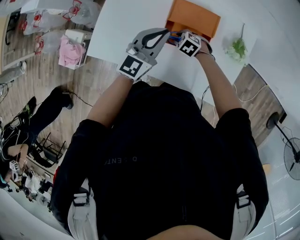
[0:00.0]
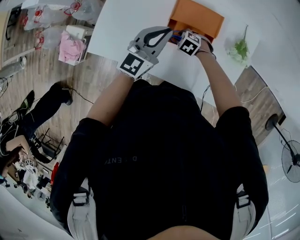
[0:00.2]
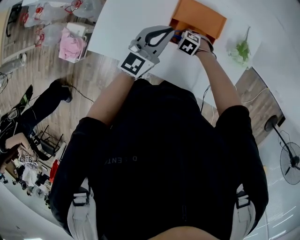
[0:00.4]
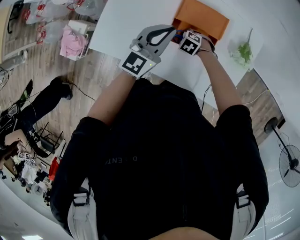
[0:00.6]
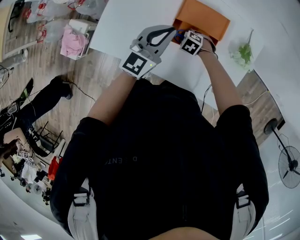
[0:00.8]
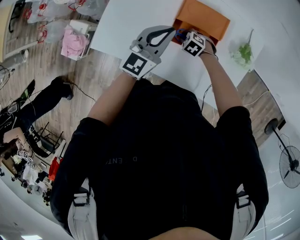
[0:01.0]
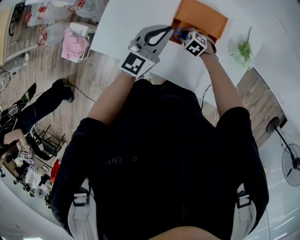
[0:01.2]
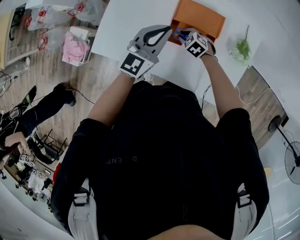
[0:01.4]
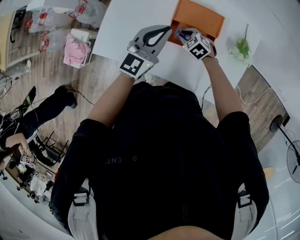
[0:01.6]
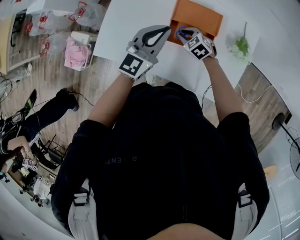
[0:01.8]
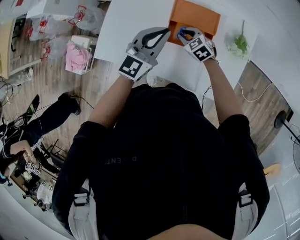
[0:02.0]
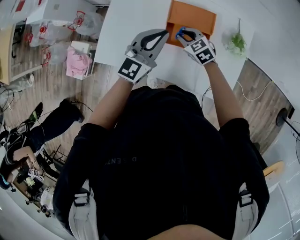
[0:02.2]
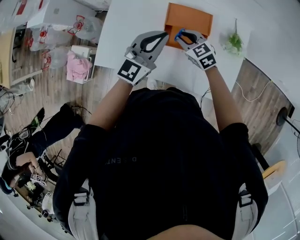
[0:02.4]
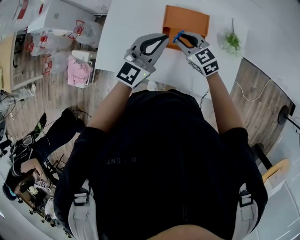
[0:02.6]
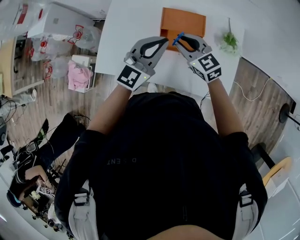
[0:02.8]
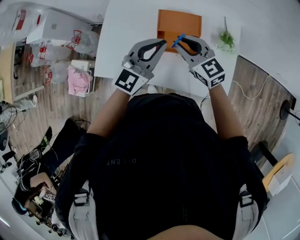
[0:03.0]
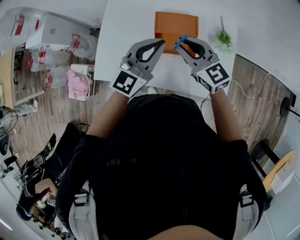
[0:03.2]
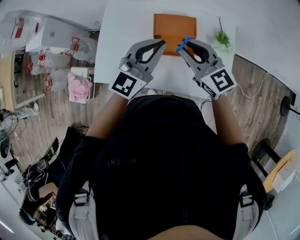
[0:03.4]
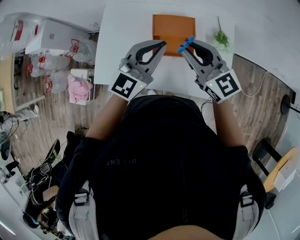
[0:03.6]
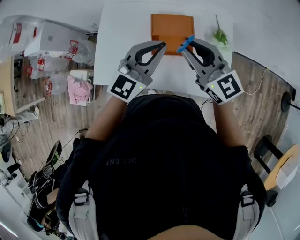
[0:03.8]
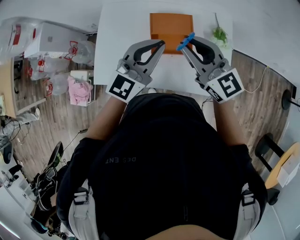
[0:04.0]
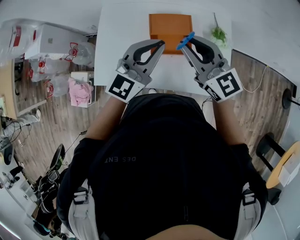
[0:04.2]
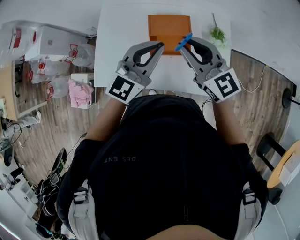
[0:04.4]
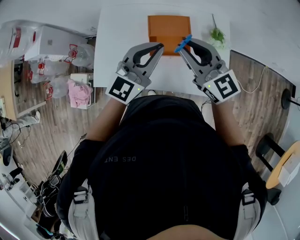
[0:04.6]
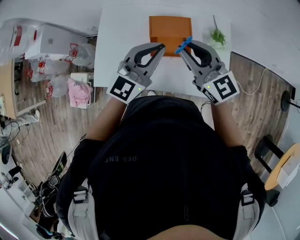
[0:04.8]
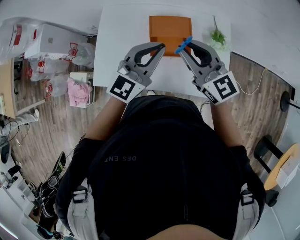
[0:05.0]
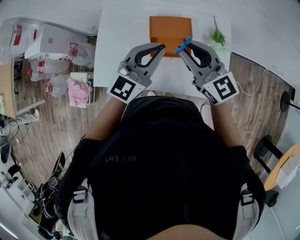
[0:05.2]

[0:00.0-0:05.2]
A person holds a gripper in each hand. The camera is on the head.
0:00.0 to 0:01.8: The grippers make only small movements.
0:01.8 to 0:03.4: The right gripper is displaced upward by about 30 cm, and tilts its fingers some 50 degrees upward, while the left gripper goes some 10 cm upward.
0:03.4 to 0:05.2: The right gripper changes place by approximately 5 cm.

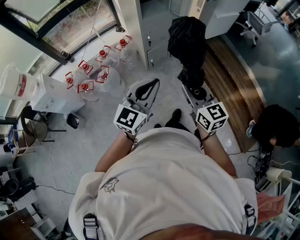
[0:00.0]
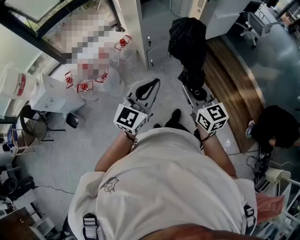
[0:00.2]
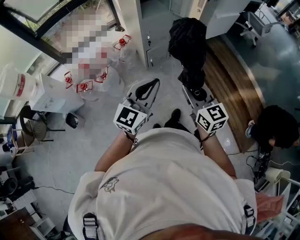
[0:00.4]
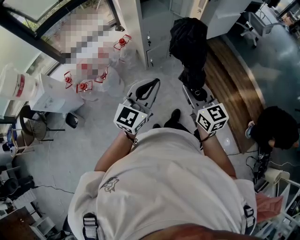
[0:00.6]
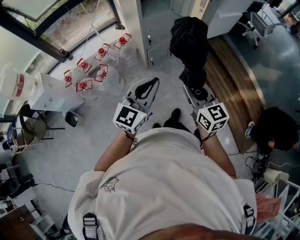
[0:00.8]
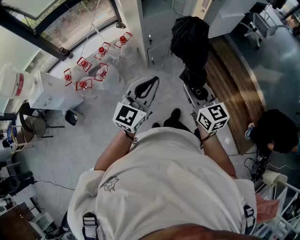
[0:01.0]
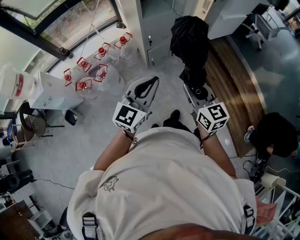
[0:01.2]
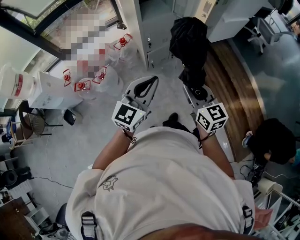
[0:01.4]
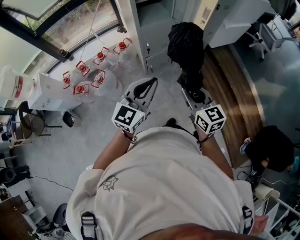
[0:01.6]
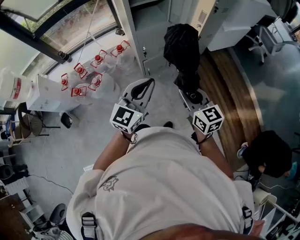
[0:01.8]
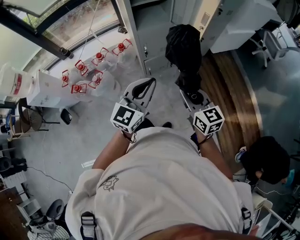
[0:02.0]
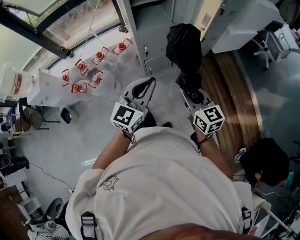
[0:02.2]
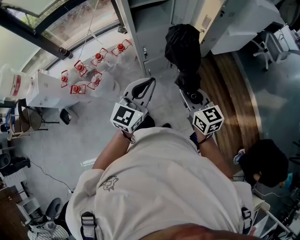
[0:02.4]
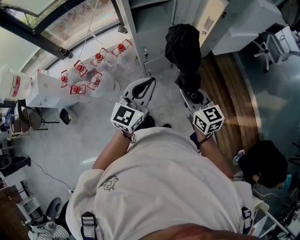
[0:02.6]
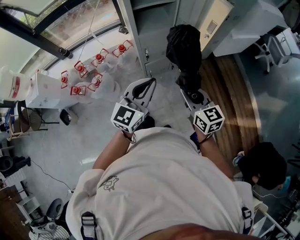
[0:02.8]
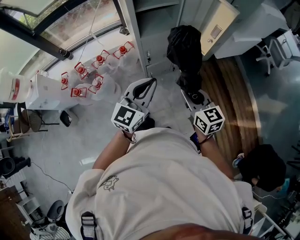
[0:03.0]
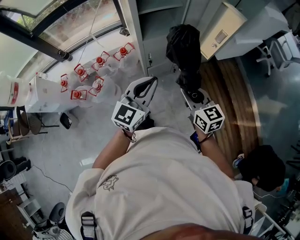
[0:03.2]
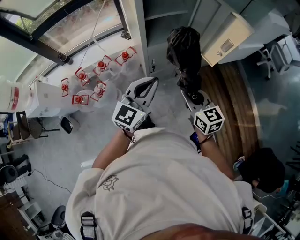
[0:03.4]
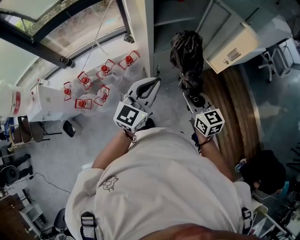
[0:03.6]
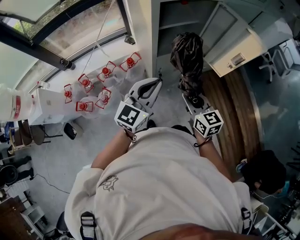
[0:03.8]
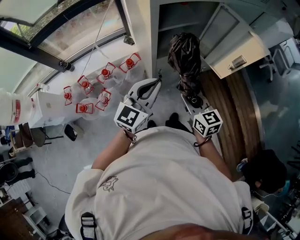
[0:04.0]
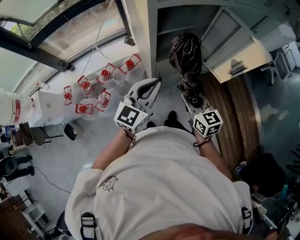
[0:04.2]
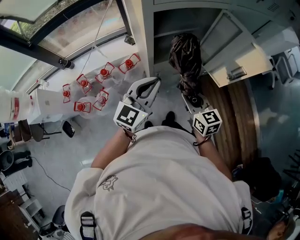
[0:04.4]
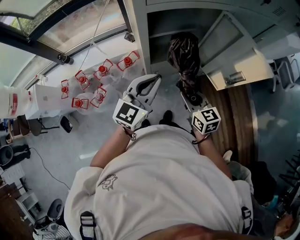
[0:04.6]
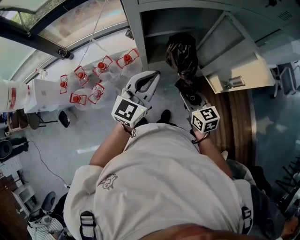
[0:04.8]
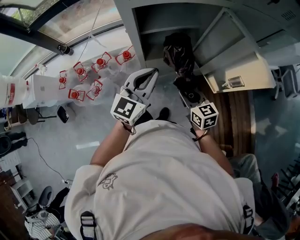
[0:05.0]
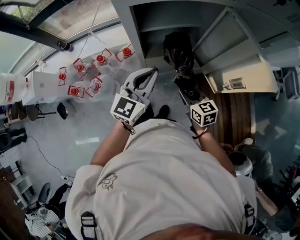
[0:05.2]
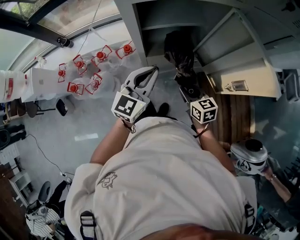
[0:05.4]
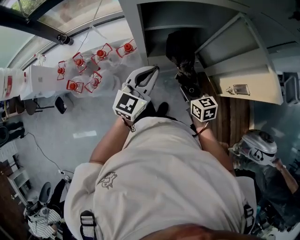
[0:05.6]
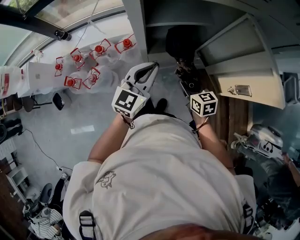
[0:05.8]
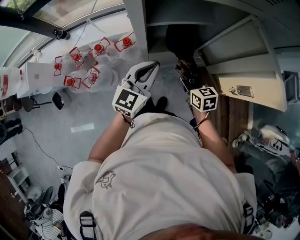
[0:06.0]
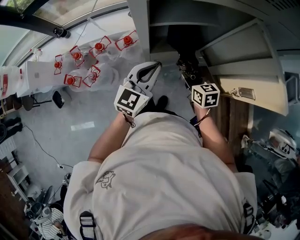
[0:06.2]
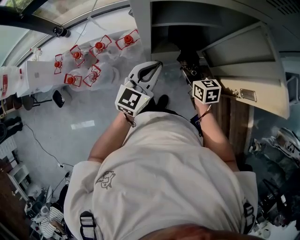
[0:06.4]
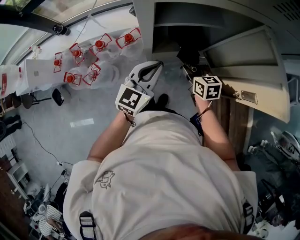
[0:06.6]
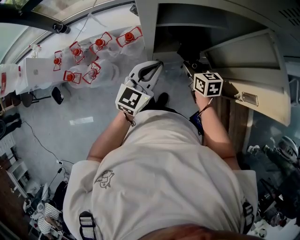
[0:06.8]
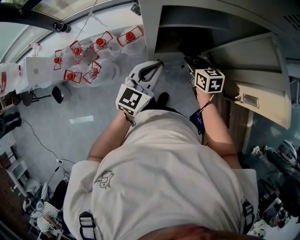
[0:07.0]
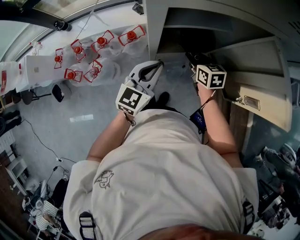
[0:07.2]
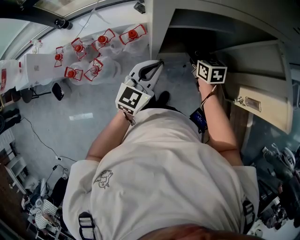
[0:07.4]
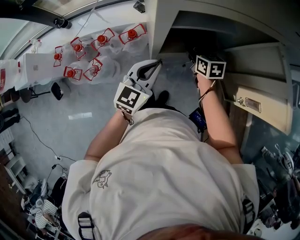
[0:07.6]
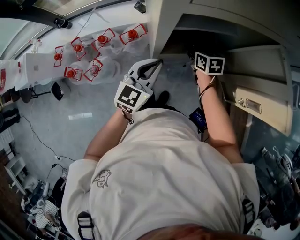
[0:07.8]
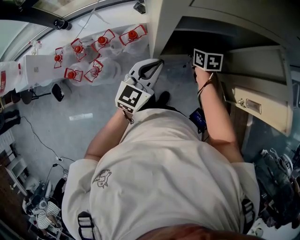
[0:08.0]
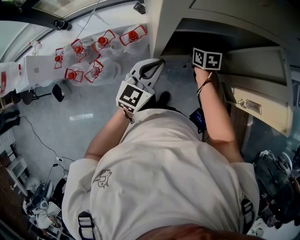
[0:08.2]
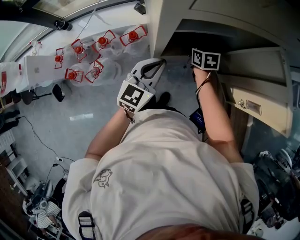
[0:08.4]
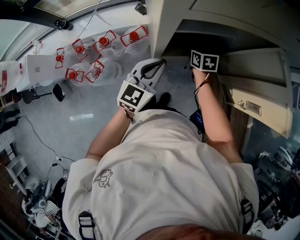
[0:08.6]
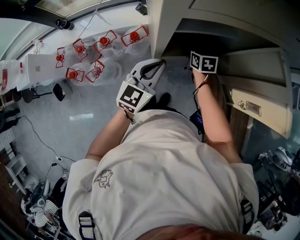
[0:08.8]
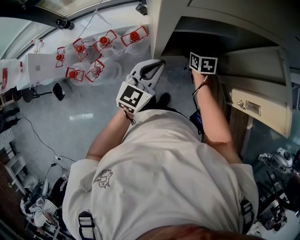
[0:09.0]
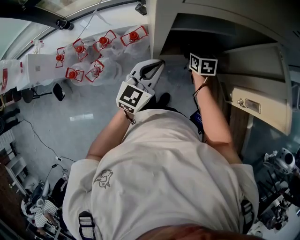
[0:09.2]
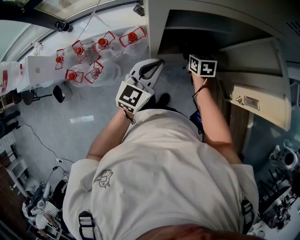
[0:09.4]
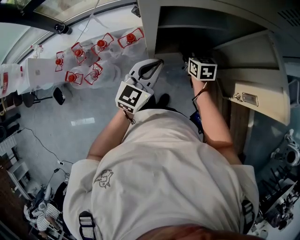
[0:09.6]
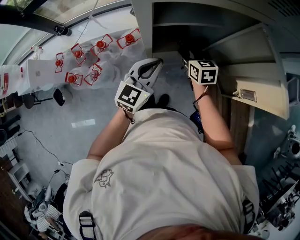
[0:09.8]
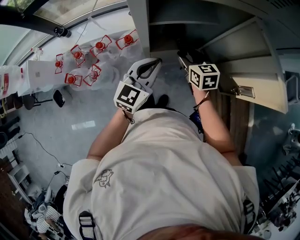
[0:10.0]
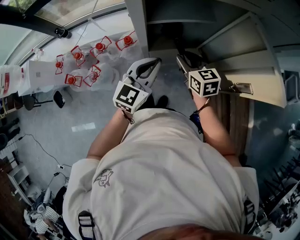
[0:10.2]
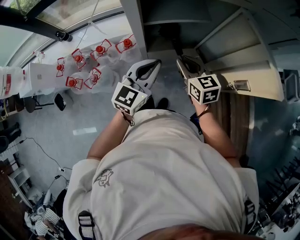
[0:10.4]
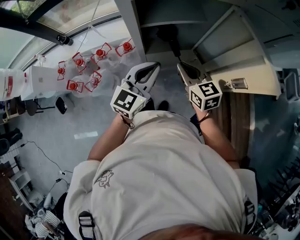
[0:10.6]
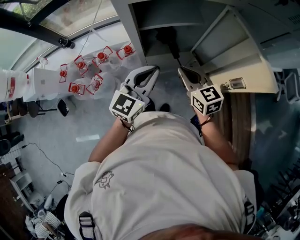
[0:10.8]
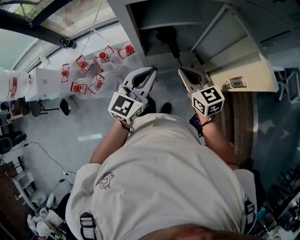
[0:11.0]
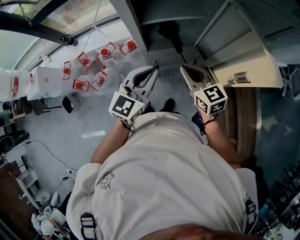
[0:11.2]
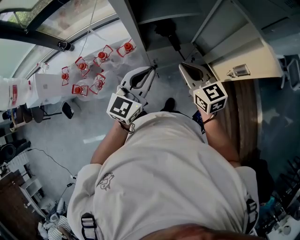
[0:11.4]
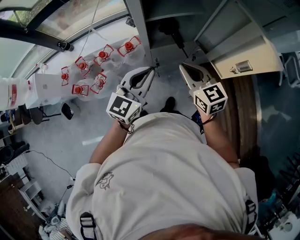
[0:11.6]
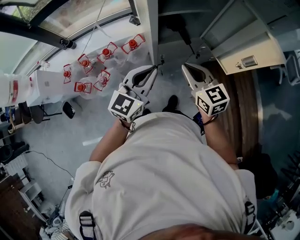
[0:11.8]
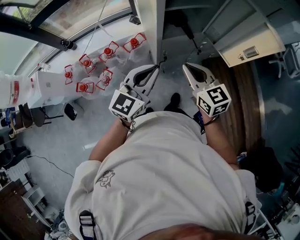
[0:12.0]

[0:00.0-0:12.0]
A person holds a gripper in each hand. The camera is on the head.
0:00.0 to 0:01.6: The right gripper is displaced forward and to the right by roughly 20 cm. Meanwhile the left gripper goes some 15 cm forward.
0:01.6 to 0:03.0: The two grippers go roughly 15 cm forward.
0:03.0 to 0:04.4: The right gripper moves forward and to the left, approximately 25 cm. Meanwhile the left gripper travels forward by about 20 cm.
0:04.4 to 0:06.0: The right gripper goes some 20 cm downward, forward and to the right, and swivels about 20 degrees. The left gripper heads forward and downward, covering approximately 15 cm.
0:06.0 to 0:07.6: The right gripper moves forward, some 15 cm, while the left gripper moves about 5 cm.
0:07.6 to 0:09.0: The right gripper opens its fingers.
0:09.0 to 0:10.4: The left gripper heads to the right and backward, covering about 10 cm. The right gripper goes some 20 cm backward and upward, and closes up.
0:10.4 to 0:12.0: The left gripper heads backward and to the left, covering roughly 20 cm, while the right gripper travels backward, to the left and upward by roughly 20 cm.

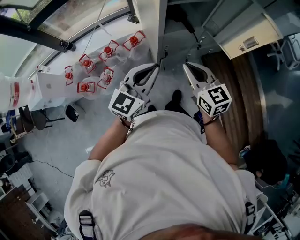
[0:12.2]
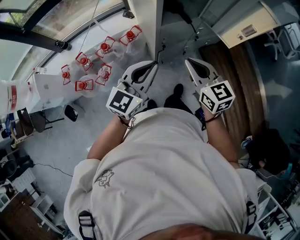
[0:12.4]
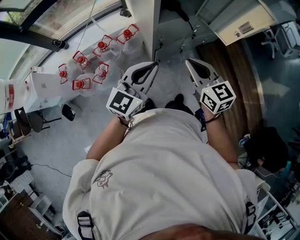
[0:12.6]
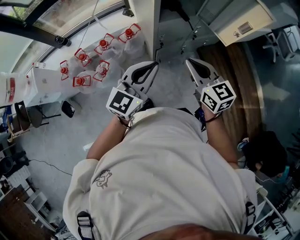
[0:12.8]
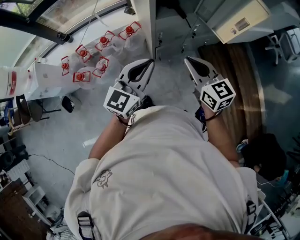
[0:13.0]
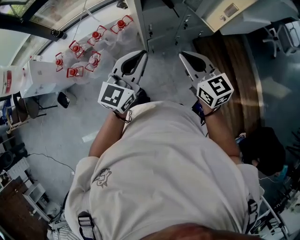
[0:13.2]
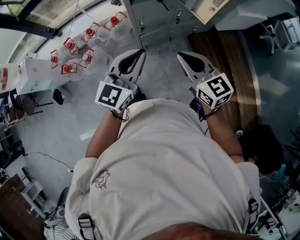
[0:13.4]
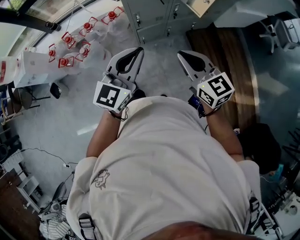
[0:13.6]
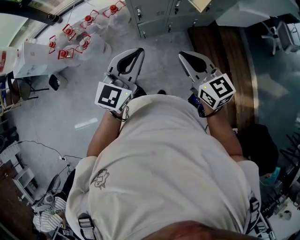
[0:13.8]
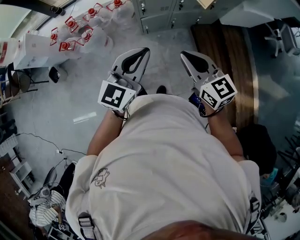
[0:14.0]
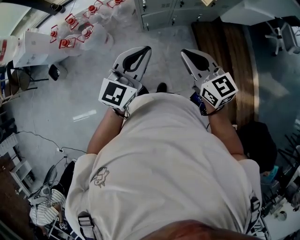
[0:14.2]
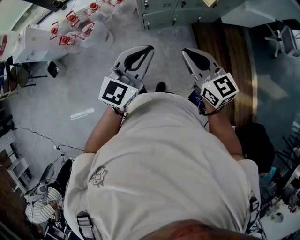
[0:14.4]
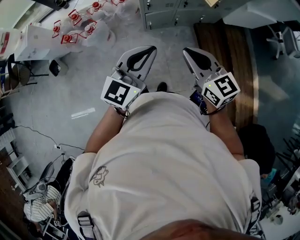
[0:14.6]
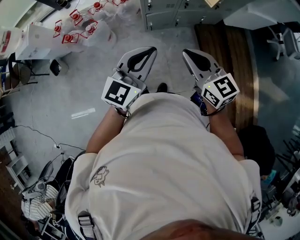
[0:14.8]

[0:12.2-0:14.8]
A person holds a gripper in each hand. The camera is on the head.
0:12.2 to 0:13.4: The grippers both shift to the right and backward by approximately 20 cm.
0:13.4 to 0:14.8: The grippers both shift backward by some 15 cm.

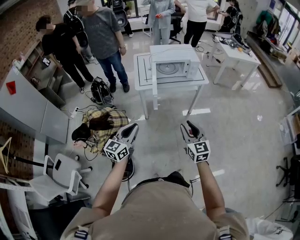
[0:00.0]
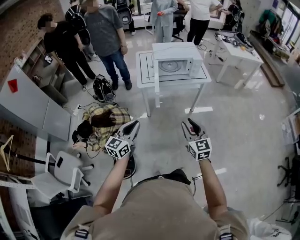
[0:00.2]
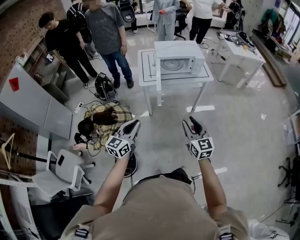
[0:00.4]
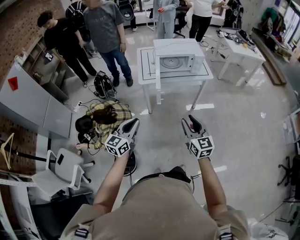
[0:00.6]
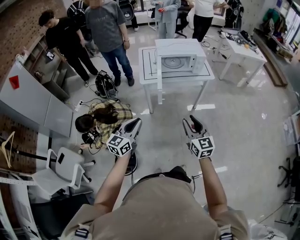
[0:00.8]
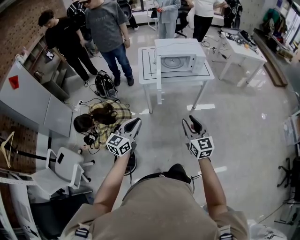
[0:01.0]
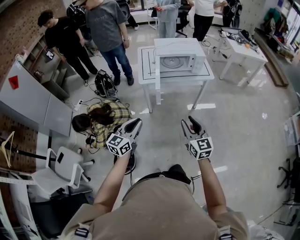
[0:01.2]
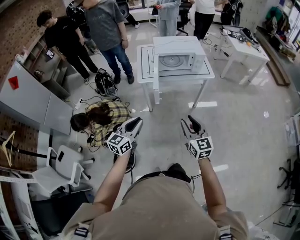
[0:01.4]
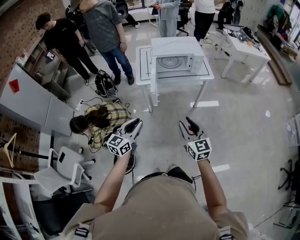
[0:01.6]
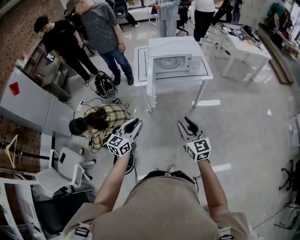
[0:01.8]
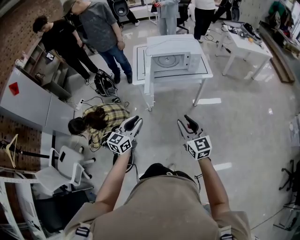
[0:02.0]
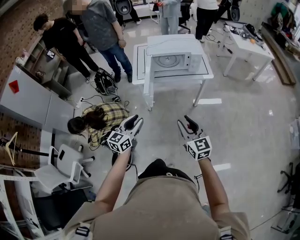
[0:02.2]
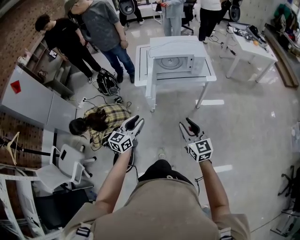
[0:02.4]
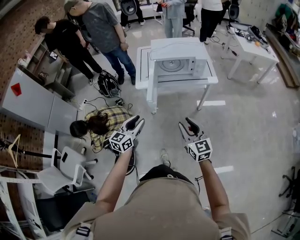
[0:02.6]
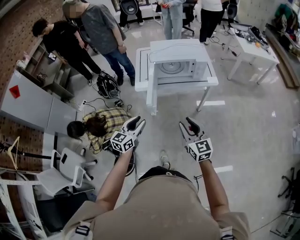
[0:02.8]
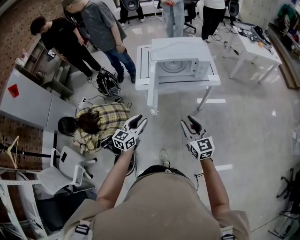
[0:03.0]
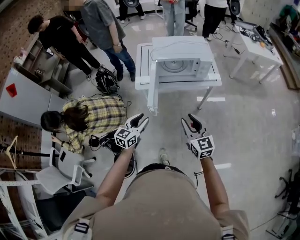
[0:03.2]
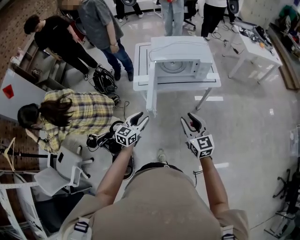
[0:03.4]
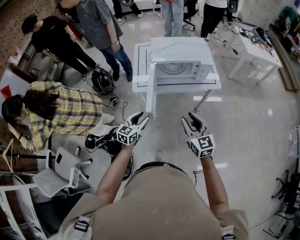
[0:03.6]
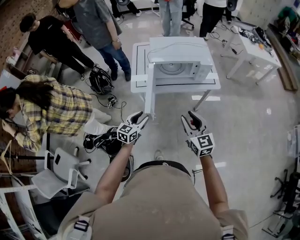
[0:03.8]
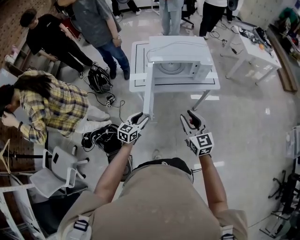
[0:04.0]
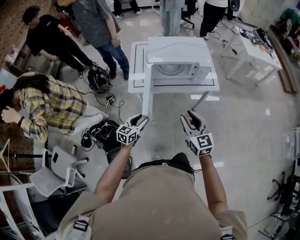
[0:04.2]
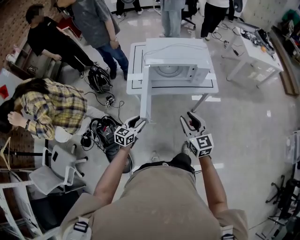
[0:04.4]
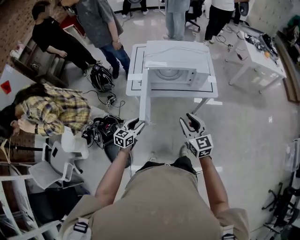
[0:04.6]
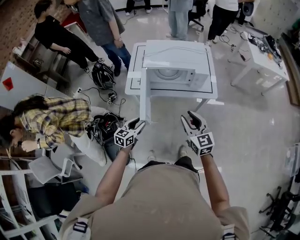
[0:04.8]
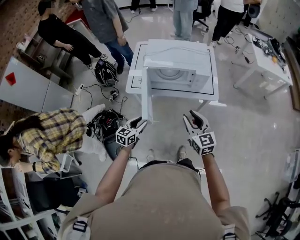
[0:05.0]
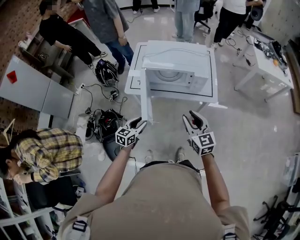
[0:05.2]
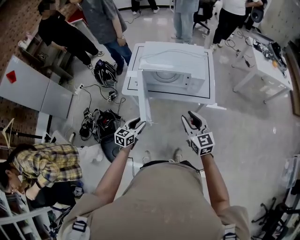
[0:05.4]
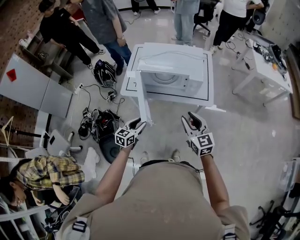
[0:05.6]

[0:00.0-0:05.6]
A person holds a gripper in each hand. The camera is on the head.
0:00.0 to 0:01.4: The grippers move only a little.
0:01.4 to 0:02.8: Both grippers travel together forward, about 15 cm.
0:02.8 to 0:04.2: The left gripper shifts some 20 cm downward and forward, while the right gripper is displaced forward by approximately 15 cm.
0:04.2 to 0:05.6: The right gripper travels to the right and forward by roughly 20 cm, while the left gripper shifts roughly 15 cm to the right.
